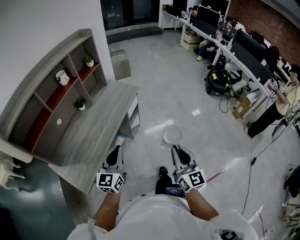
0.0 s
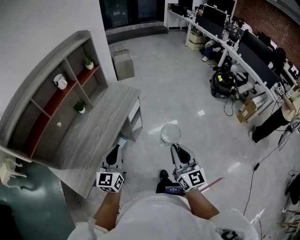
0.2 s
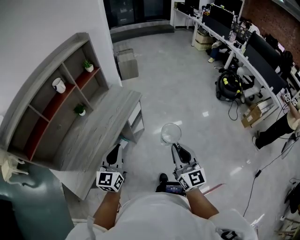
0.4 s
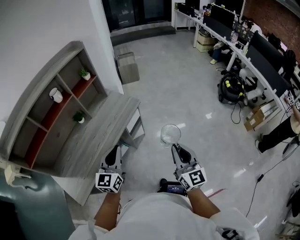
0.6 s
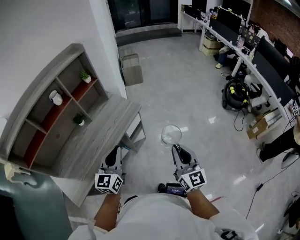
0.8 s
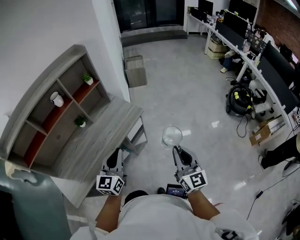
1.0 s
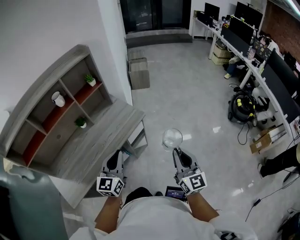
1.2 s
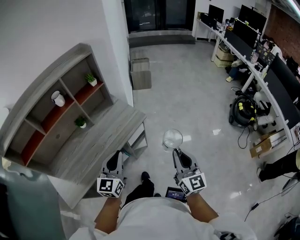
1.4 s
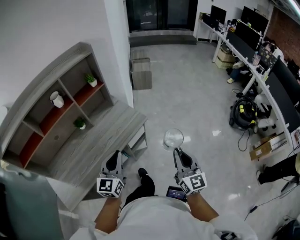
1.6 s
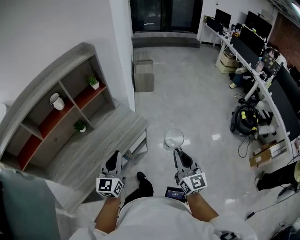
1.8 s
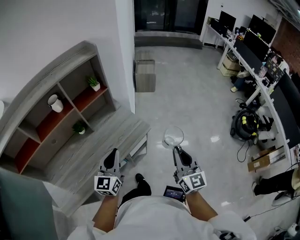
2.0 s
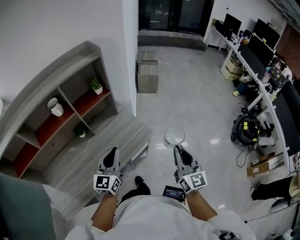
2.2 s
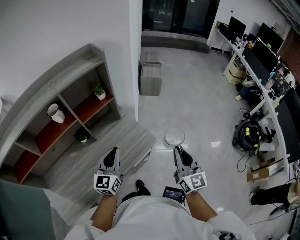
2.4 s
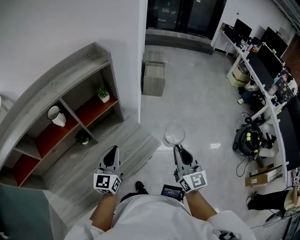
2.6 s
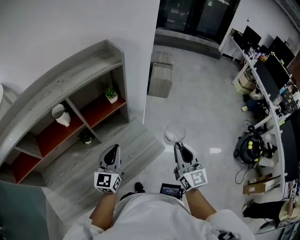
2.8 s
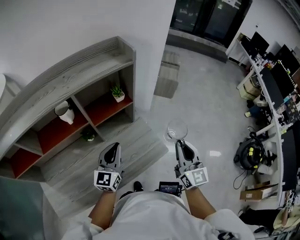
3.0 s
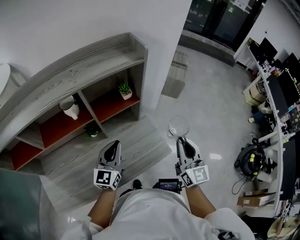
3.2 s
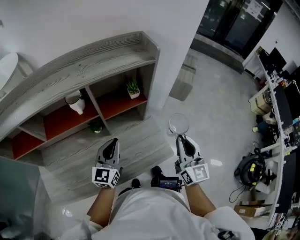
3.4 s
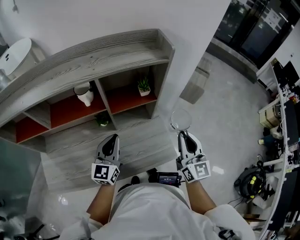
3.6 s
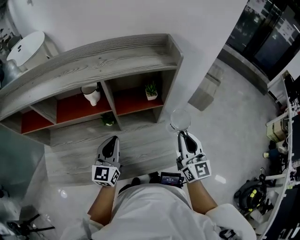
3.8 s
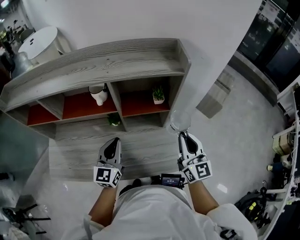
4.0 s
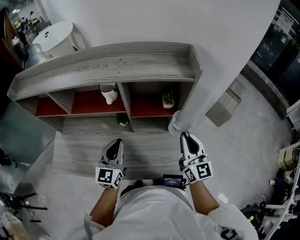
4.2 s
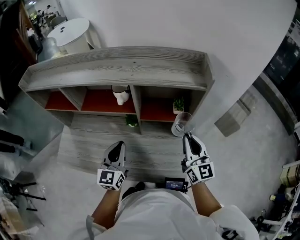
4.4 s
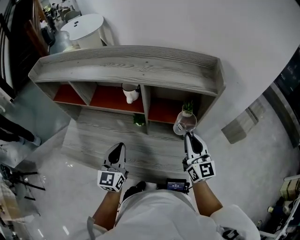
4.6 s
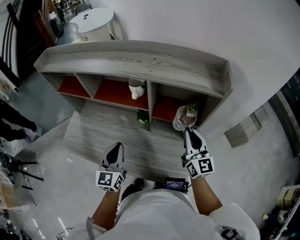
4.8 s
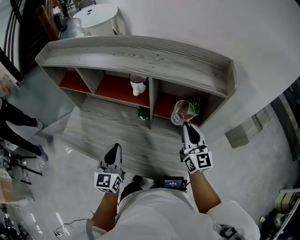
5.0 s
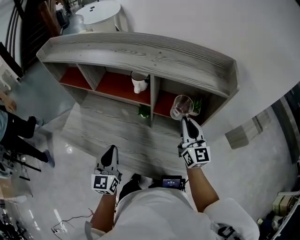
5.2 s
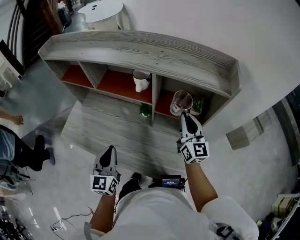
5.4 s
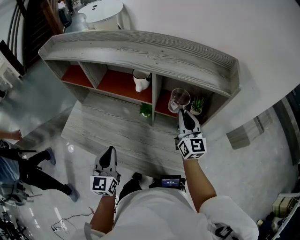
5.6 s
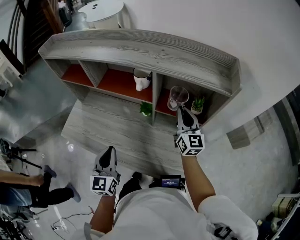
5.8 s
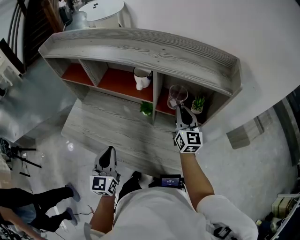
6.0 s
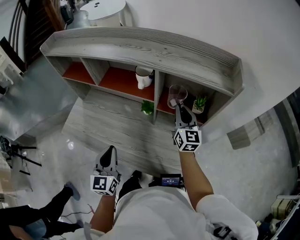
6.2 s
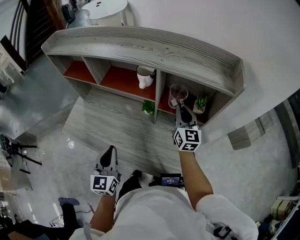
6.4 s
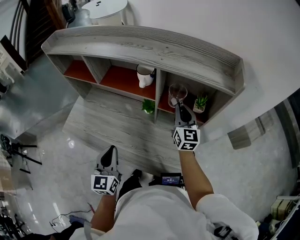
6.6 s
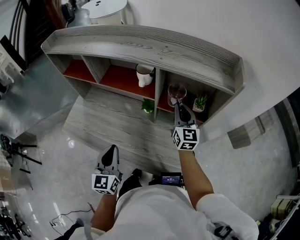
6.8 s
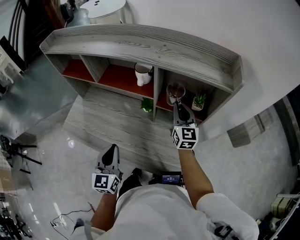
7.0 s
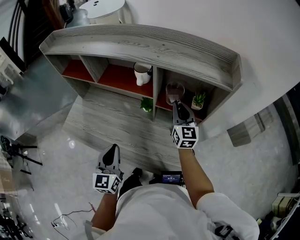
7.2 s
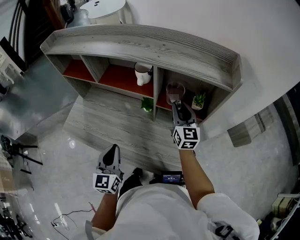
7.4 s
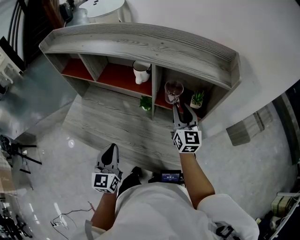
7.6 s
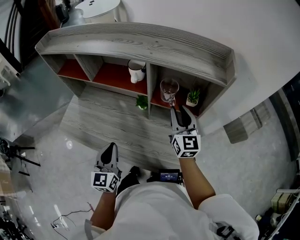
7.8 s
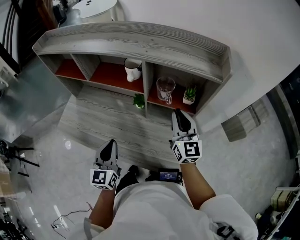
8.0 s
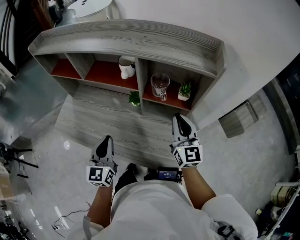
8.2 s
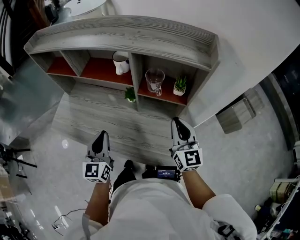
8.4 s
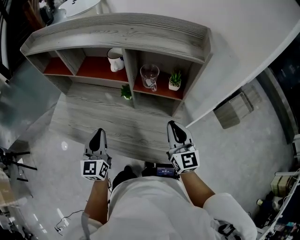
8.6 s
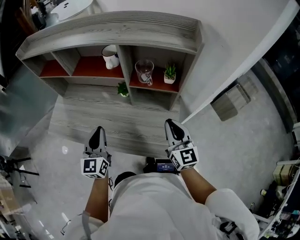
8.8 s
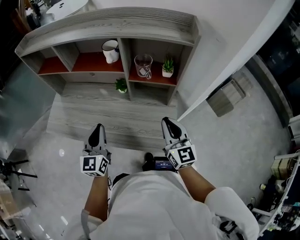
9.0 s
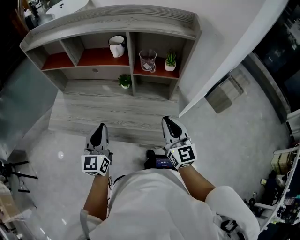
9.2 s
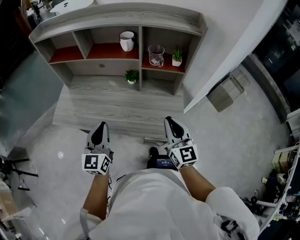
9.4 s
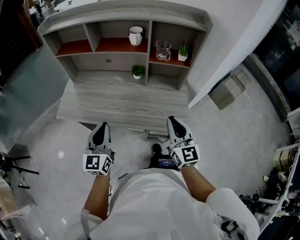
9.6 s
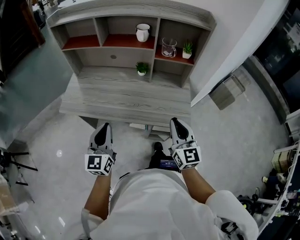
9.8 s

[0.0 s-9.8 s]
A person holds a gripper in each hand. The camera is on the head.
0.0 to 1.4 s: The grippers both shift forward and to the right by some 30 cm.
1.4 to 2.8 s: The left gripper heads forward and to the left, covering some 30 cm. The right gripper is displaced forward by some 35 cm.
2.8 to 4.2 s: The left gripper shifts by approximately 10 cm, and changes its angle by some 40 degrees. Meanwhile the right gripper changes place by roughly 25 cm, and changes its angle by some 40 degrees.
4.2 to 5.6 s: The left gripper shifts roughly 15 cm to the left and backward, and rotates about 30 degrees; the right gripper shifts about 15 cm forward and to the left.
5.6 to 7.0 s: There are only small adjustments of the grippers.
7.0 to 8.4 s: The right gripper is displaced backward by approximately 15 cm.
8.4 to 9.8 s: Both grippers move backward and to the left, some 25 cm.

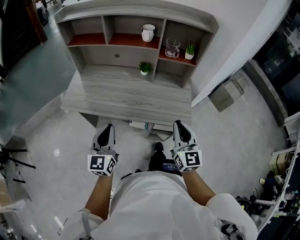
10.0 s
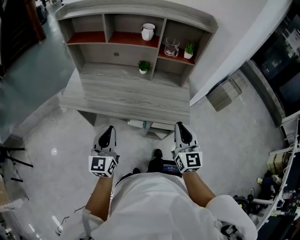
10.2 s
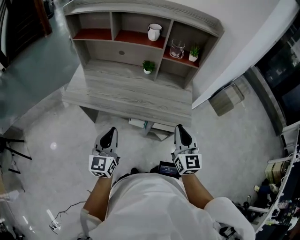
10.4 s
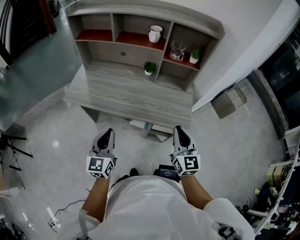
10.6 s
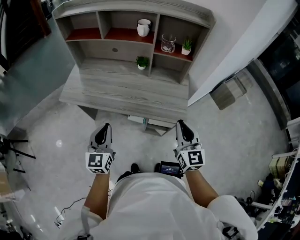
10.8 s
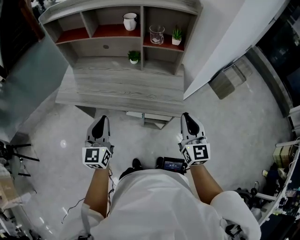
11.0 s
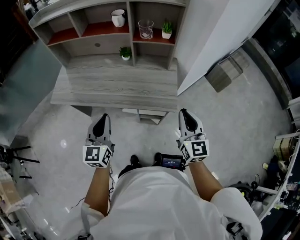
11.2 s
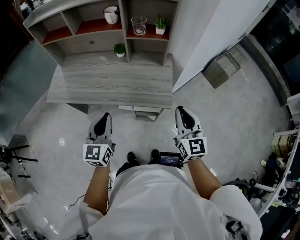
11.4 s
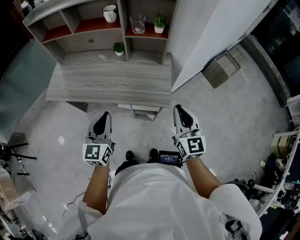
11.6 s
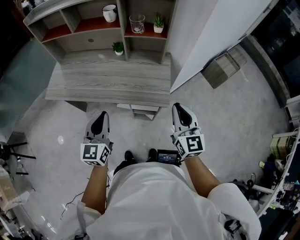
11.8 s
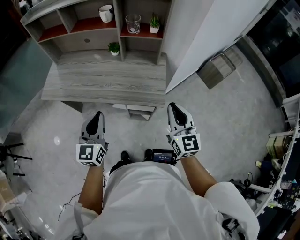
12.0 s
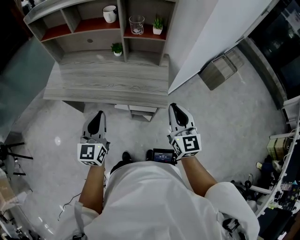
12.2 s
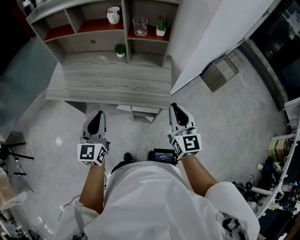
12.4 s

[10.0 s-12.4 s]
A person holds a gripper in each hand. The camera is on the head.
10.0 to 11.2 s: The grippers both shift to the right by approximately 15 cm.
11.2 to 12.4 s: The grippers make only small movements.

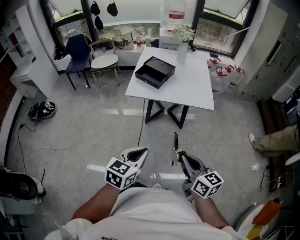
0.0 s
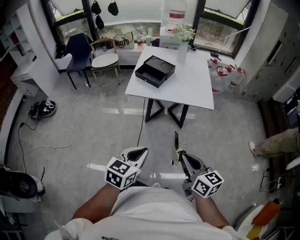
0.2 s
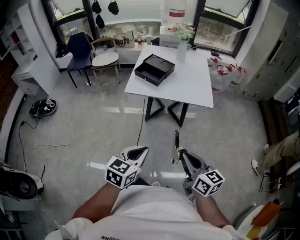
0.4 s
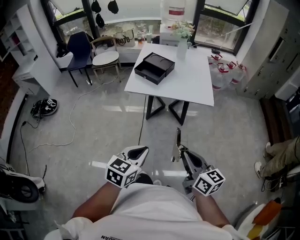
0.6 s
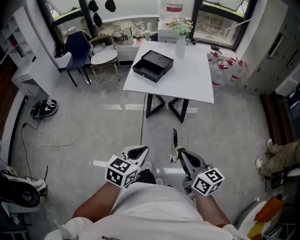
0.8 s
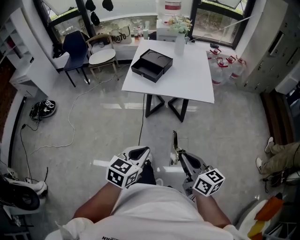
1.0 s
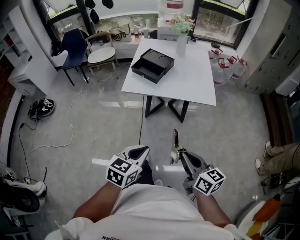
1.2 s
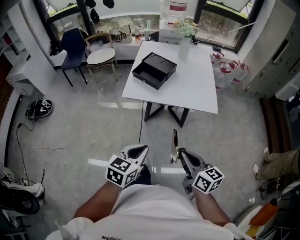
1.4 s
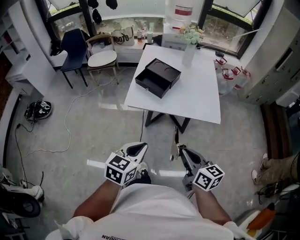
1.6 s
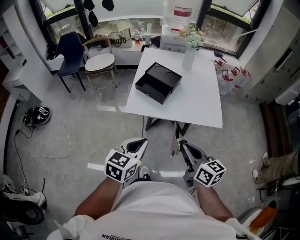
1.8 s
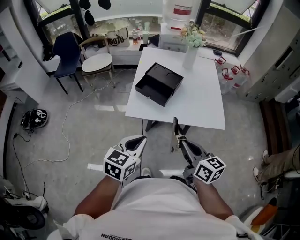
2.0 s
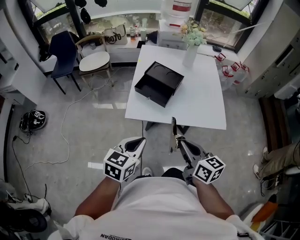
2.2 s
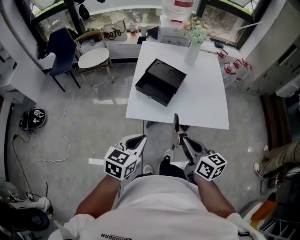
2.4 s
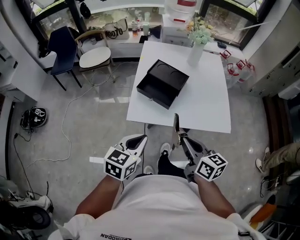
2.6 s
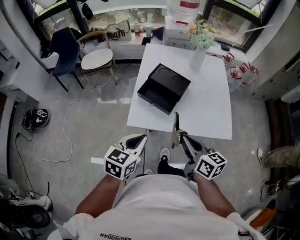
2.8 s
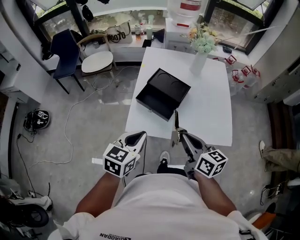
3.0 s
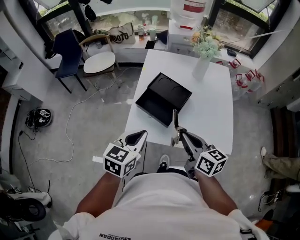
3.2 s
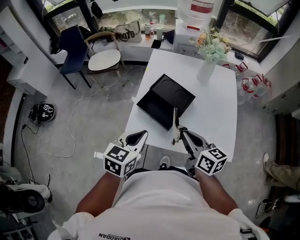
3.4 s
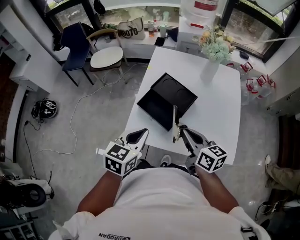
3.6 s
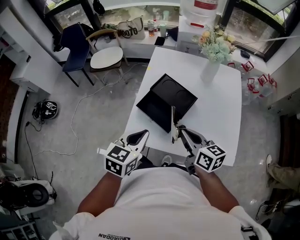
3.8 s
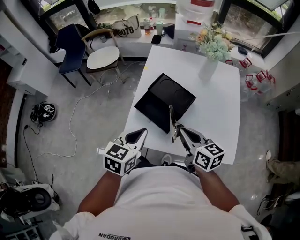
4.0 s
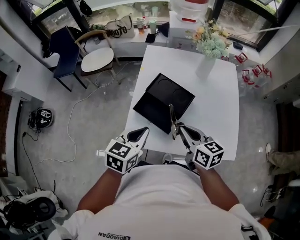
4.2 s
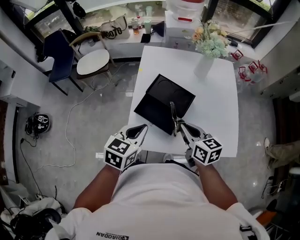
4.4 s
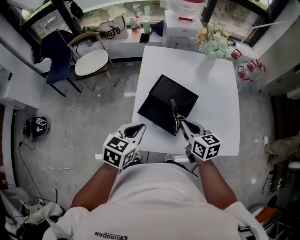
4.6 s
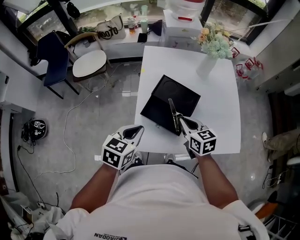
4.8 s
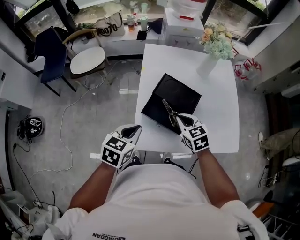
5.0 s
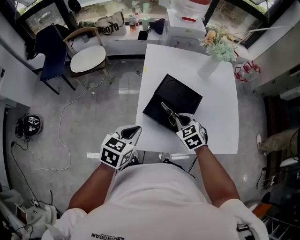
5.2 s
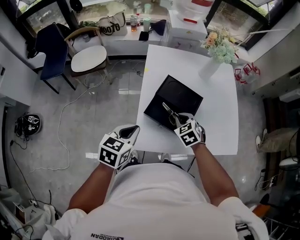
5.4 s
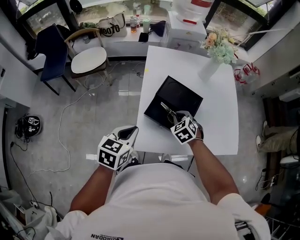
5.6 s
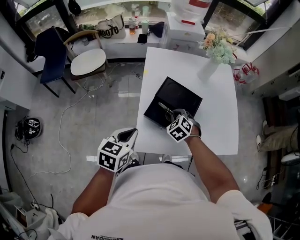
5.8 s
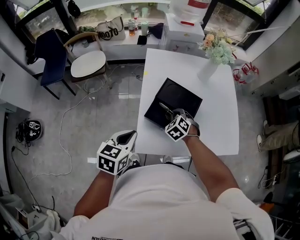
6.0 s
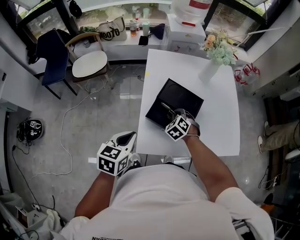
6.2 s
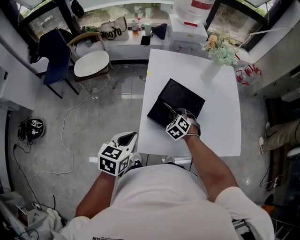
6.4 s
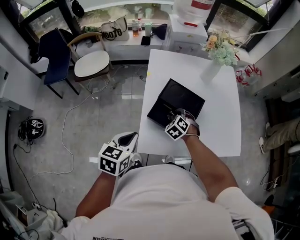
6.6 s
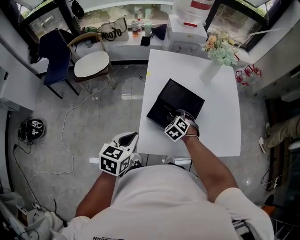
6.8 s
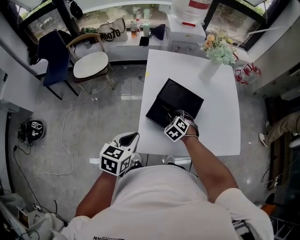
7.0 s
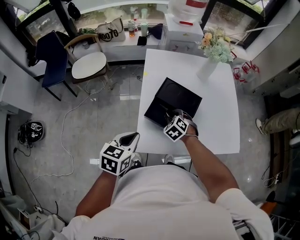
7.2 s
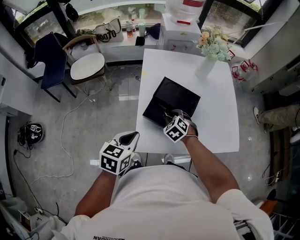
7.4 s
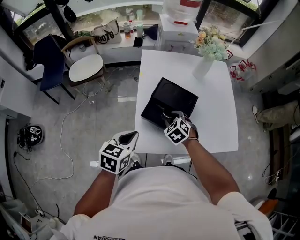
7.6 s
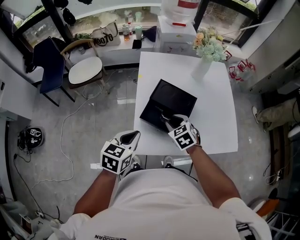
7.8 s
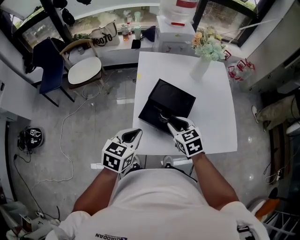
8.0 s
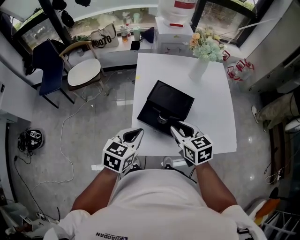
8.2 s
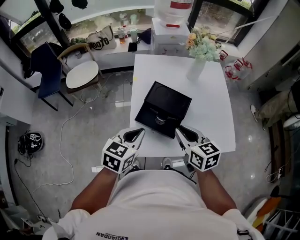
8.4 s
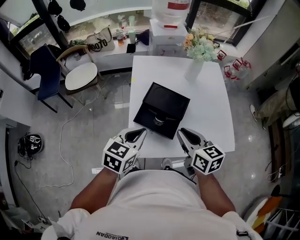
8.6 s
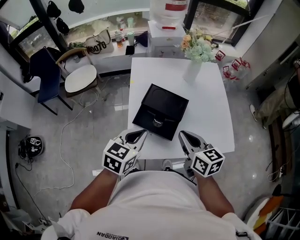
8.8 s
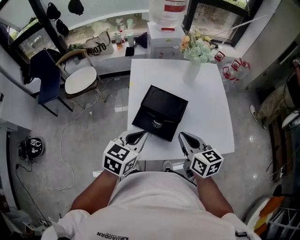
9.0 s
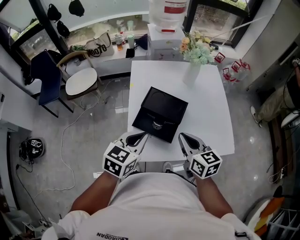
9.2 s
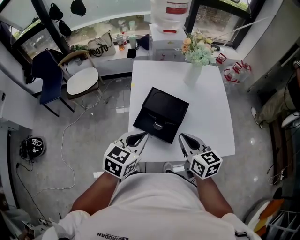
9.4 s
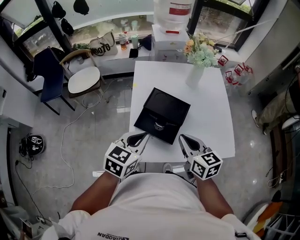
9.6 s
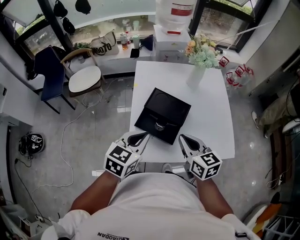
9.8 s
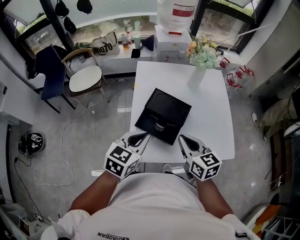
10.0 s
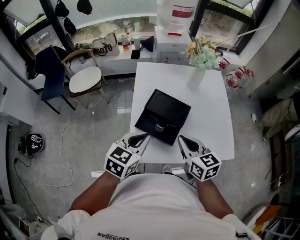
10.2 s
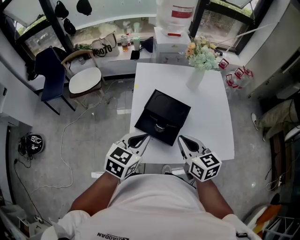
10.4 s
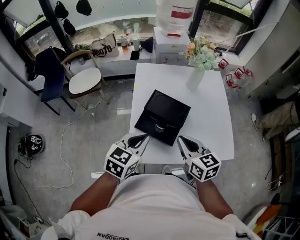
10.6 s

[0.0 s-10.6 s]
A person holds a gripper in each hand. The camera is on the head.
0.0 to 1.6 s: The grippers both shift forward by some 15 cm.
1.6 to 3.0 s: Both grippers move forward, some 25 cm.
3.0 to 4.6 s: The left gripper goes some 15 cm forward; the right gripper goes roughly 20 cm forward and downward.
4.6 to 6.0 s: The left gripper goes roughly 10 cm to the left. The right gripper moves downward, to the left and forward, approximately 15 cm, and twists about 50 degrees counterclockwise, seen from behind.
6.0 to 7.6 s: The right gripper opens.
7.6 to 9.0 s: The left gripper goes approximately 10 cm to the right and upward, while the right gripper is displaced upward, to the right and backward by about 20 cm, rolls clockwise, seen from behind, by some 50 degrees, and closes.
9.0 to 10.6 s: The grippers move only a little.

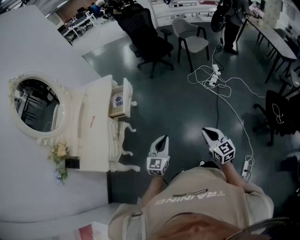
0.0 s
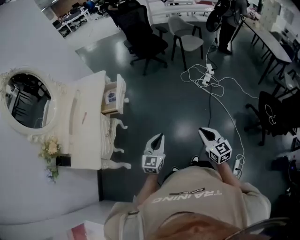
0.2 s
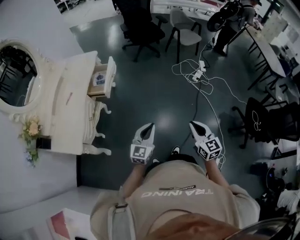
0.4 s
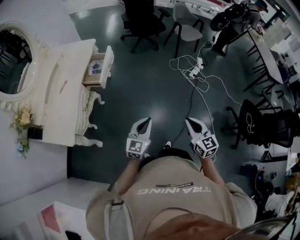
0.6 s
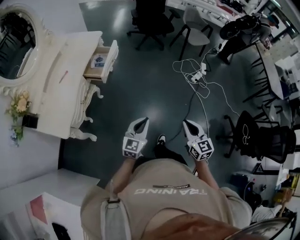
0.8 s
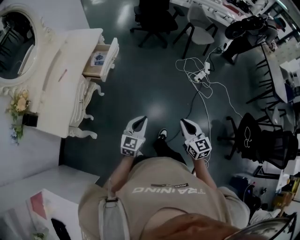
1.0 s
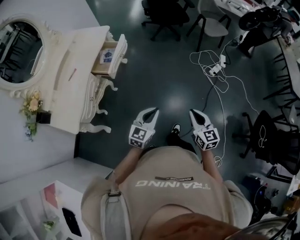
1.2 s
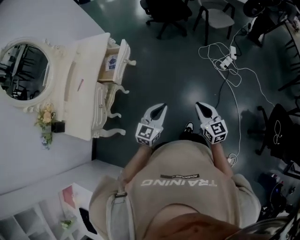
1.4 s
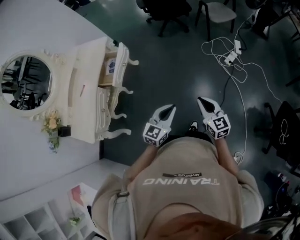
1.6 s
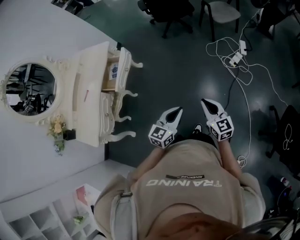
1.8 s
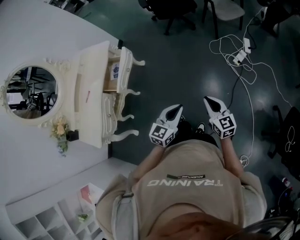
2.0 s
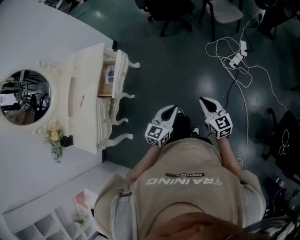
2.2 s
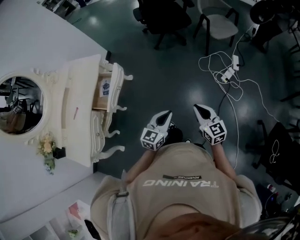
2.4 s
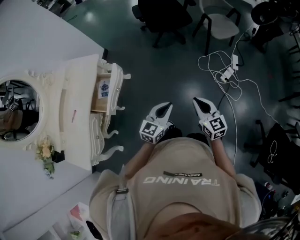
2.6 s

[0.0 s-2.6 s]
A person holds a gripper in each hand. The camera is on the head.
0.0 to 1.2 s: Both grippers travel together forward, about 15 cm.
1.2 to 2.6 s: Both grippers are carried forward, approximately 40 cm.
